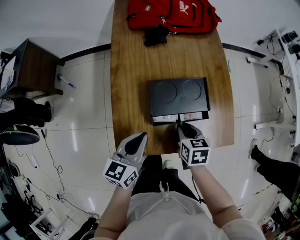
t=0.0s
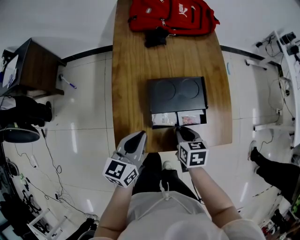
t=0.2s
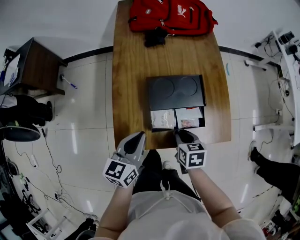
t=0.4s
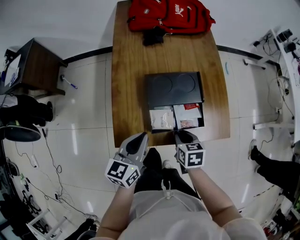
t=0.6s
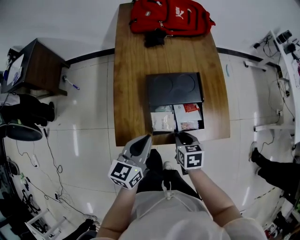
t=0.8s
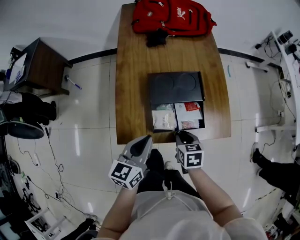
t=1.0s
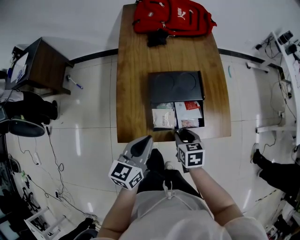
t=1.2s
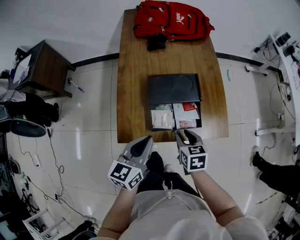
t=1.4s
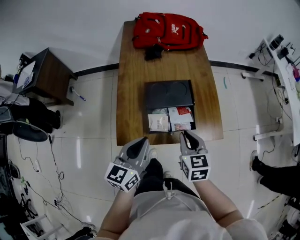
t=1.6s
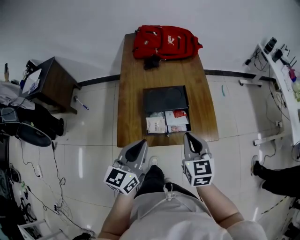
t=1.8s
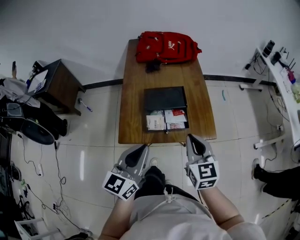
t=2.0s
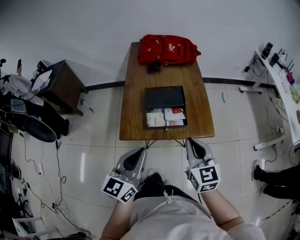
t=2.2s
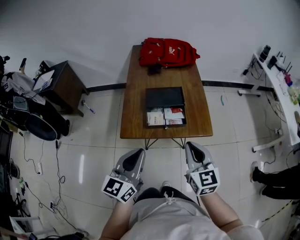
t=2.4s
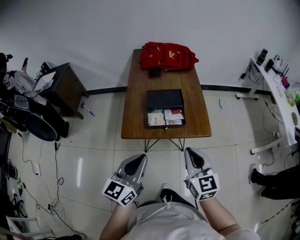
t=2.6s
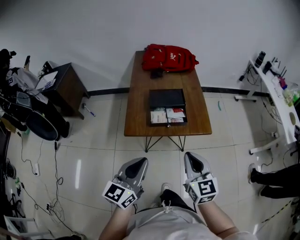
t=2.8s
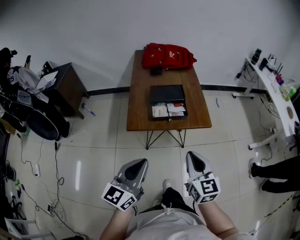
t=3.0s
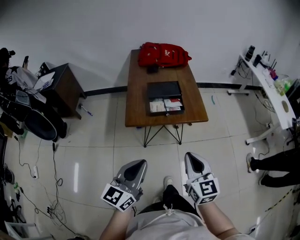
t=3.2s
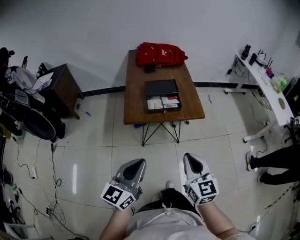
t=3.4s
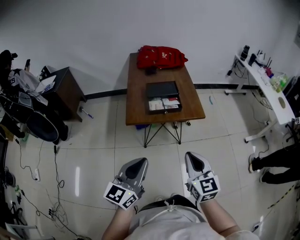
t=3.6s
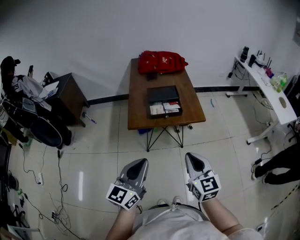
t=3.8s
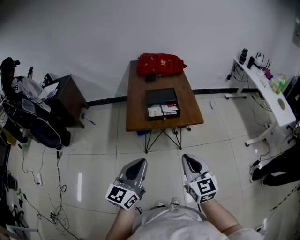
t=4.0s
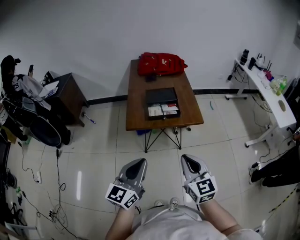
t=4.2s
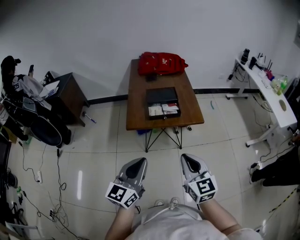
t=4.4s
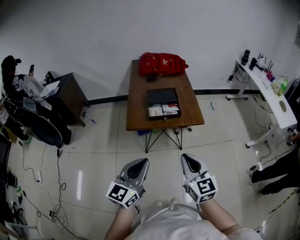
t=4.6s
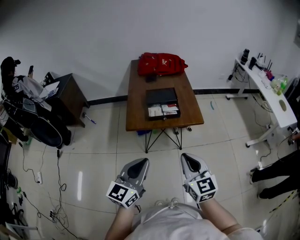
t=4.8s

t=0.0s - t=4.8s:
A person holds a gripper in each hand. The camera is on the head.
t=0.0s - t=1.6s: Both grippers move upward and backward, about 15 cm. The right gripper rotates about 20 degrees.
t=1.6s - t=3.2s: The right gripper moves backward and upward, some 35 cm, and swivels approximately 20 degrees. The left gripper moves backward, approximately 35 cm.
t=3.2s - t=4.8s: The grippers make only small movements.

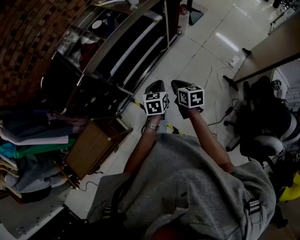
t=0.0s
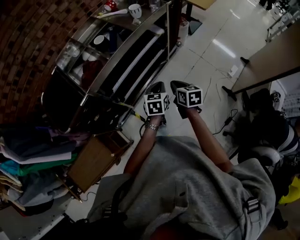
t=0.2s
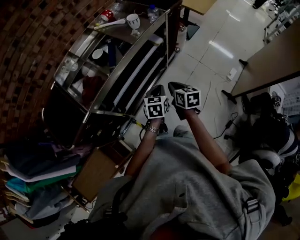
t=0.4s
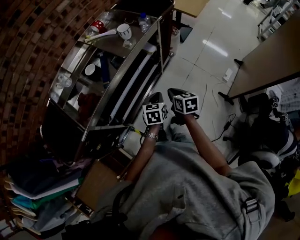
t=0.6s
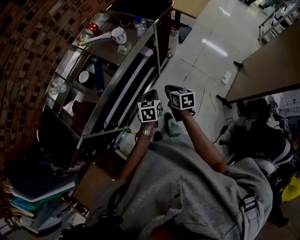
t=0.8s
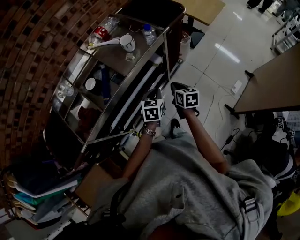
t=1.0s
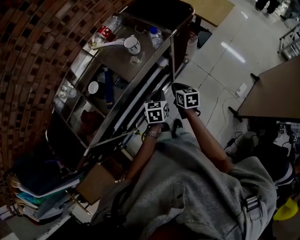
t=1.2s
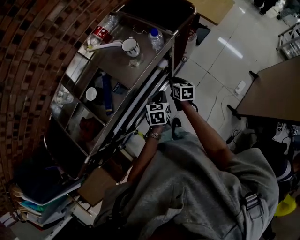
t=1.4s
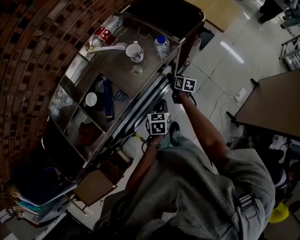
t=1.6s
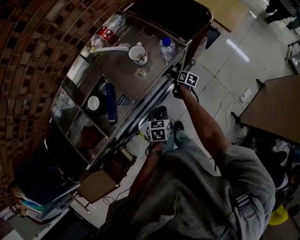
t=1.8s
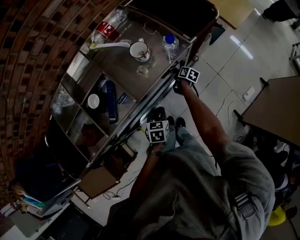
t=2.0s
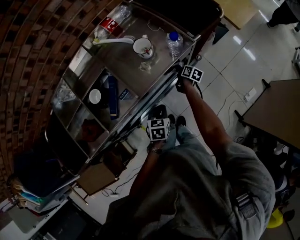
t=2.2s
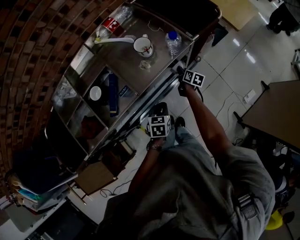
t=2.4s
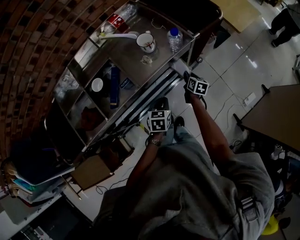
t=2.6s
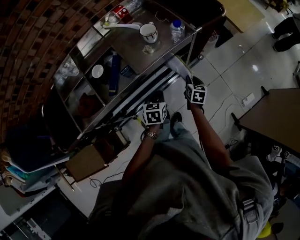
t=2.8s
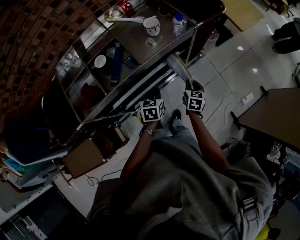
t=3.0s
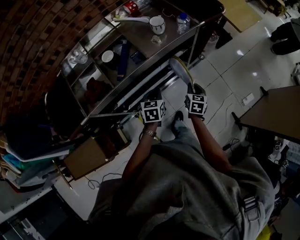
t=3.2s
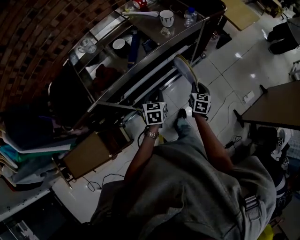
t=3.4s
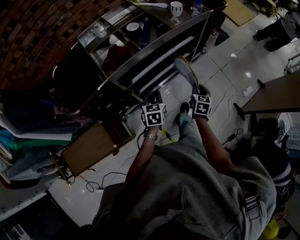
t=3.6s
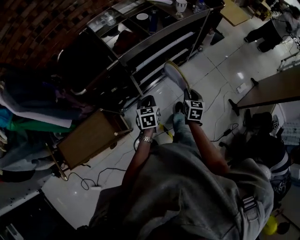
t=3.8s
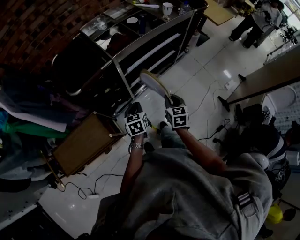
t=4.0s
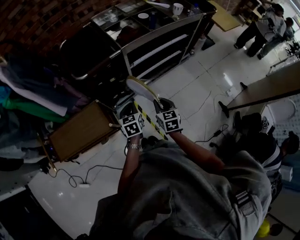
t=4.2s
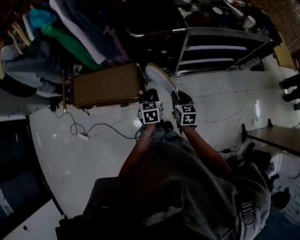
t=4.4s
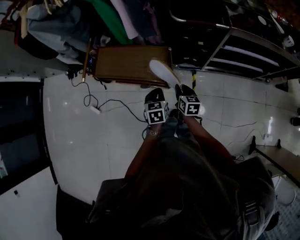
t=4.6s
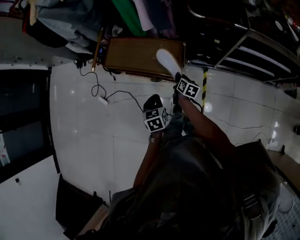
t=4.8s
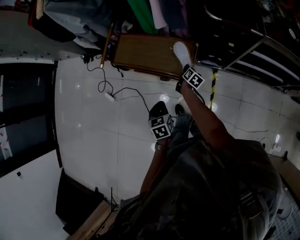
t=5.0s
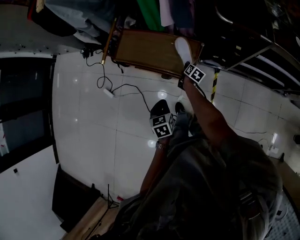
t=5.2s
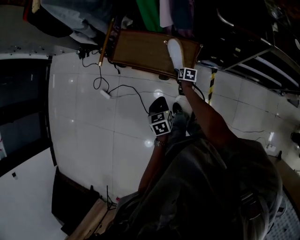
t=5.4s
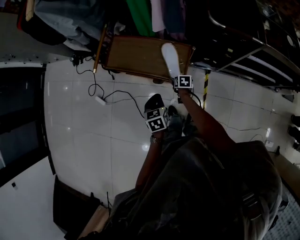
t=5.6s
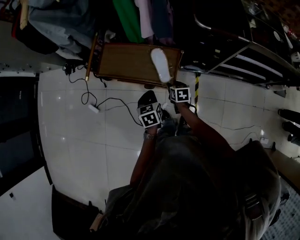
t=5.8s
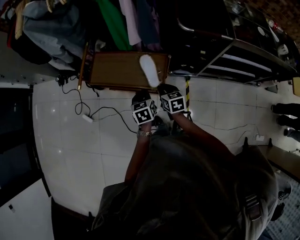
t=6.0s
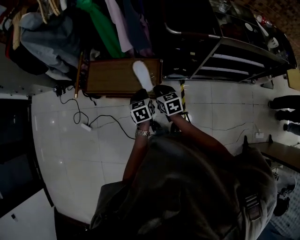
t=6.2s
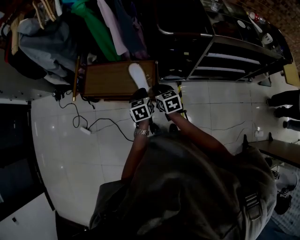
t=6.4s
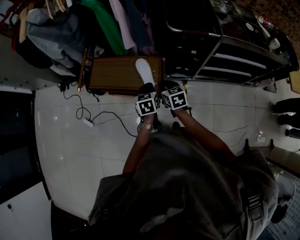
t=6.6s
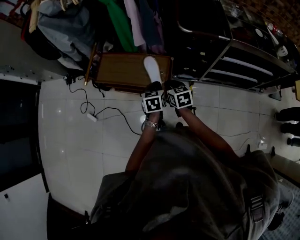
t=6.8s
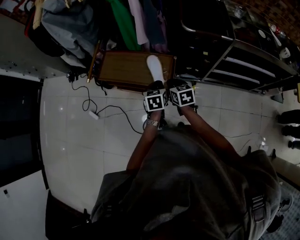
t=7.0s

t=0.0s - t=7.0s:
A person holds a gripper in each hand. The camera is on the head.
t=0.0s - t=1.4s: The two grippers go about 40 cm forward.
t=1.4s - t=2.8s: The right gripper travels downward and back again, some 15 cm each way, and opens and closes again. Meanwhile the left gripper travels to the left by roughly 5 cm.
t=2.8s - t=4.2s: The two grippers travel together, backward and to the left, approximately 60 cm. The right gripper swivels approximately 30 degrees. Meanwhile the left gripper turns by approximately 20 degrees.
t=4.2s - t=5.6s: Both grippers are carried some 40 cm. The right gripper rotates about 50 degrees, and opens, while the left gripper turns by approximately 40 degrees.
t=5.6s - t=7.0s: The left gripper travels to the right and upward by approximately 15 cm. The right gripper heads upward, covering about 25 cm, turns by approximately 30 degrees, and closes up.

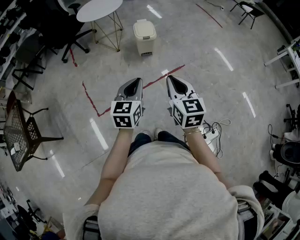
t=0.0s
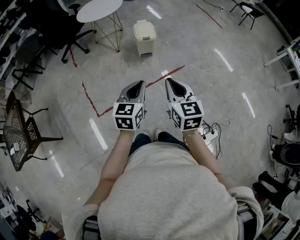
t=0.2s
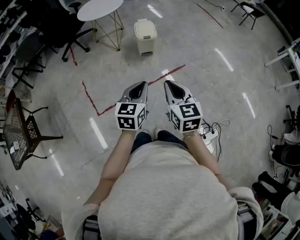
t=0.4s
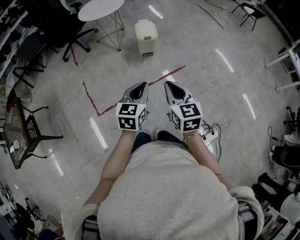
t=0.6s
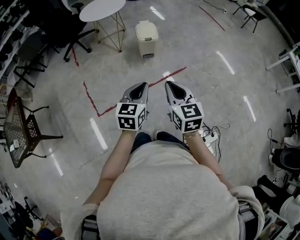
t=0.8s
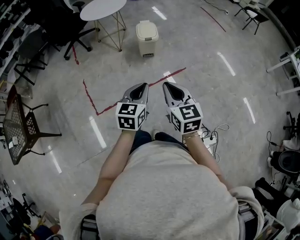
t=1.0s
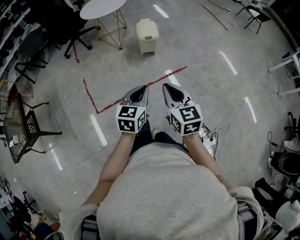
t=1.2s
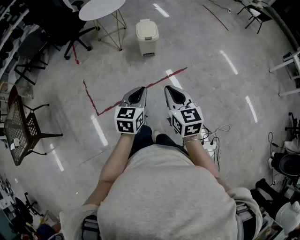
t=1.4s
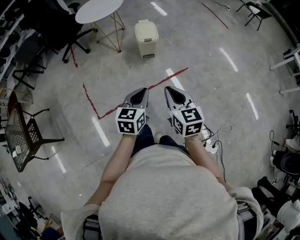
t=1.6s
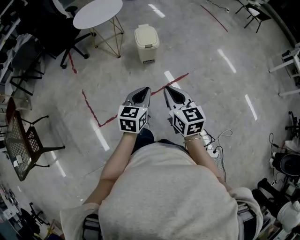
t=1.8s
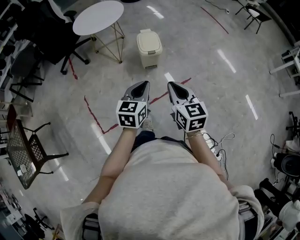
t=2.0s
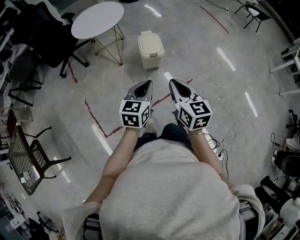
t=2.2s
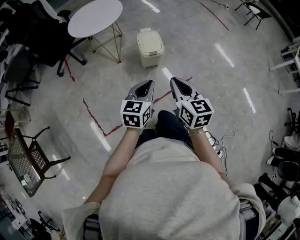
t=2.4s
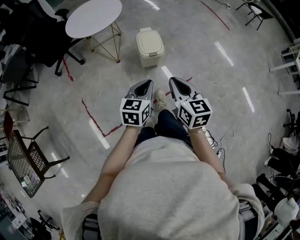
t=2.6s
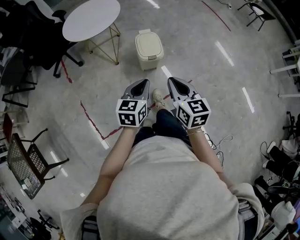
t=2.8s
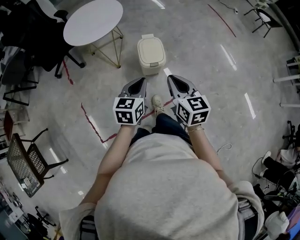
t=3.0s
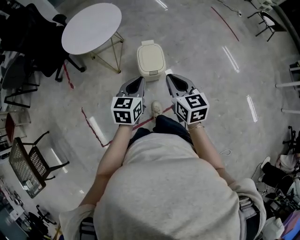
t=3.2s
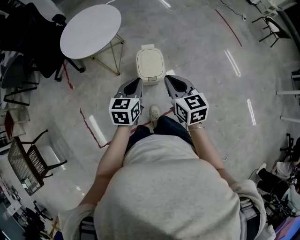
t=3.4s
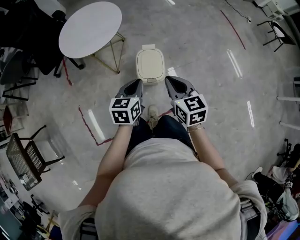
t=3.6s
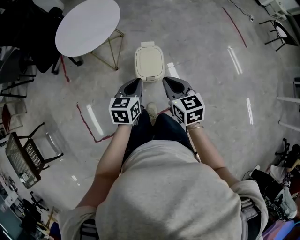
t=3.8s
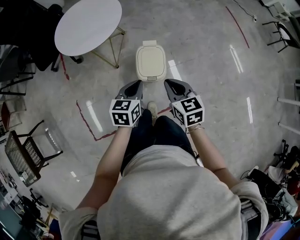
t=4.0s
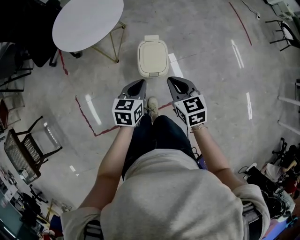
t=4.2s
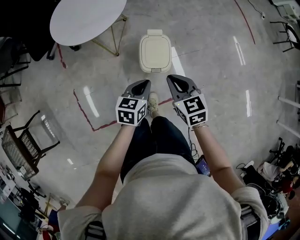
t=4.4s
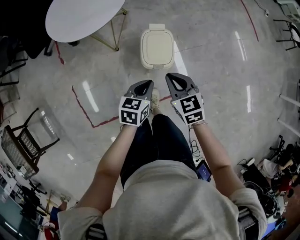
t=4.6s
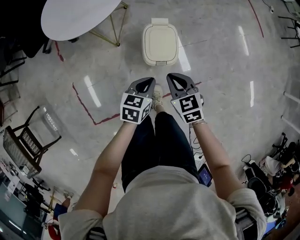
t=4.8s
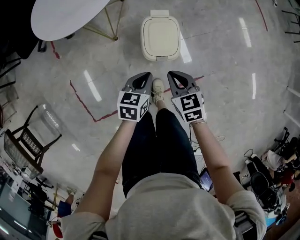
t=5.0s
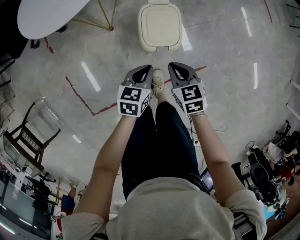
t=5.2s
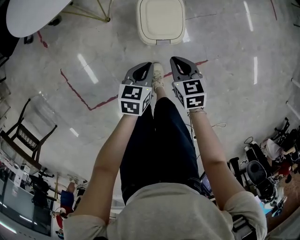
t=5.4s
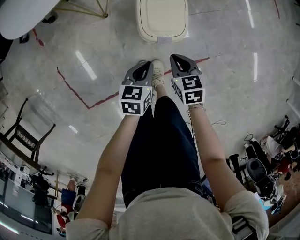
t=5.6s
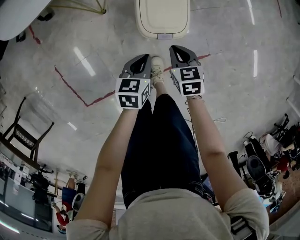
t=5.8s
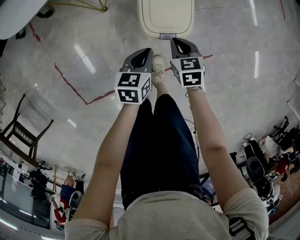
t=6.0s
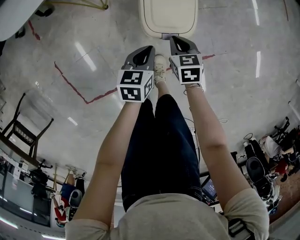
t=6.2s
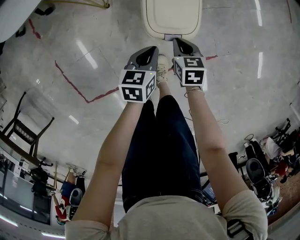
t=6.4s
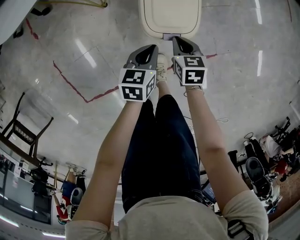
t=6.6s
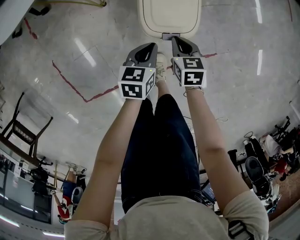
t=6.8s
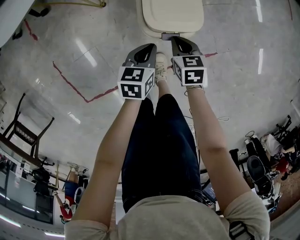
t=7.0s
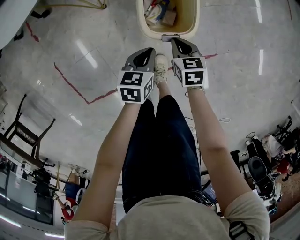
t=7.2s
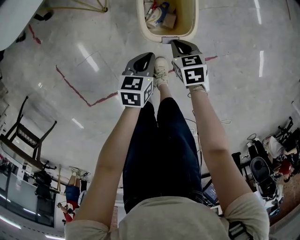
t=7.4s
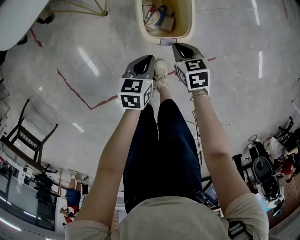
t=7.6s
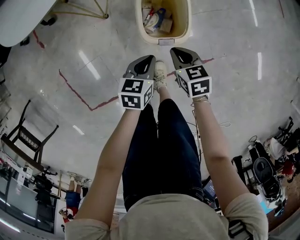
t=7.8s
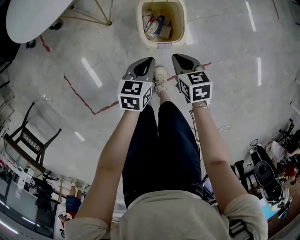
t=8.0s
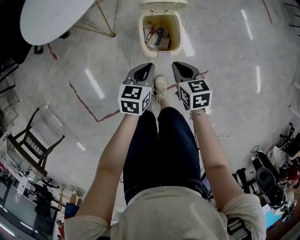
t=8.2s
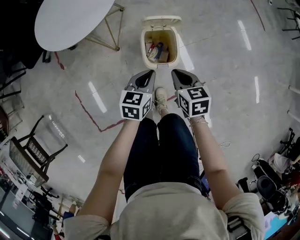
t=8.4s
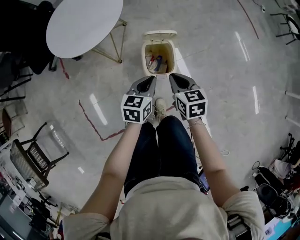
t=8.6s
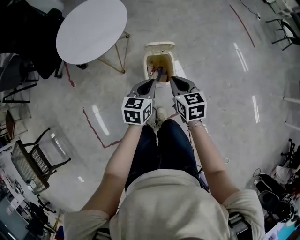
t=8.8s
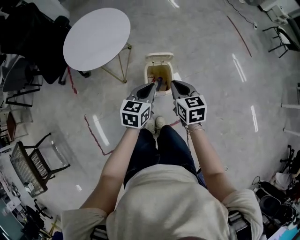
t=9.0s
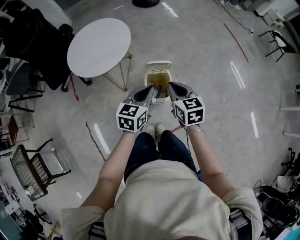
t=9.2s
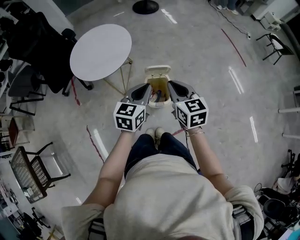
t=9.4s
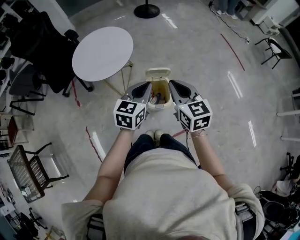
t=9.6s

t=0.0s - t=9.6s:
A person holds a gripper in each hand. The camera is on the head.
t=0.0s - t=1.6s: The left gripper moves downward, roughly 5 cm. The right gripper shifts by approximately 5 cm.
t=1.6s - t=3.2s: The two grippers travel together, forward, approximately 40 cm.
t=3.2s - t=4.8s: Both grippers travel together downward and forward, some 20 cm. The left gripper turns by roughly 20 degrees. The right gripper changes its angle by some 30 degrees.
t=4.8s - t=6.4s: The grippers both shift downward by approximately 25 cm. The right gripper swivels some 30 degrees.
t=6.4s - t=8.0s: The two grippers go about 10 cm upward.
t=8.0s - t=9.6s: The grippers both shift upward by approximately 40 cm. The left gripper rotates approximately 30 degrees; the right gripper tilts its fingers about 30 degrees upward.

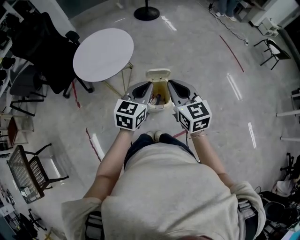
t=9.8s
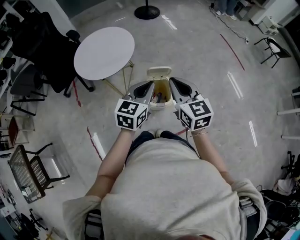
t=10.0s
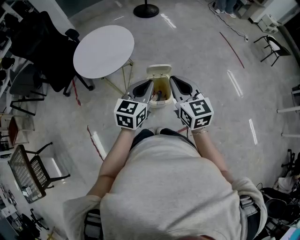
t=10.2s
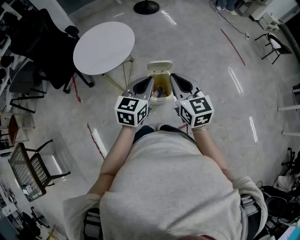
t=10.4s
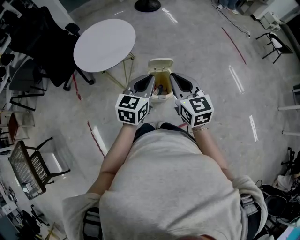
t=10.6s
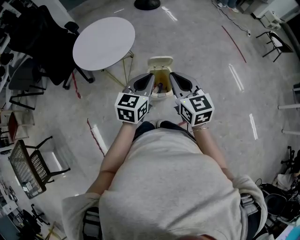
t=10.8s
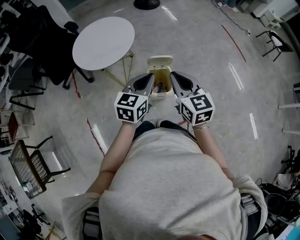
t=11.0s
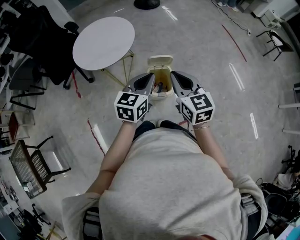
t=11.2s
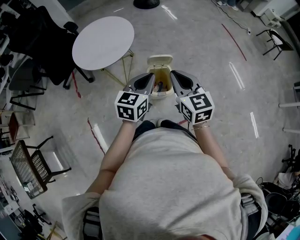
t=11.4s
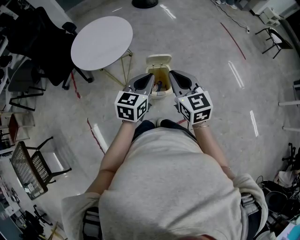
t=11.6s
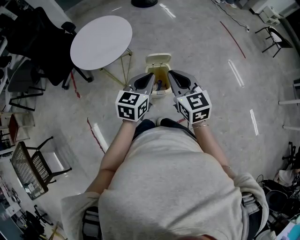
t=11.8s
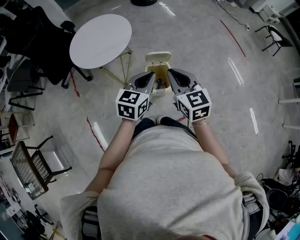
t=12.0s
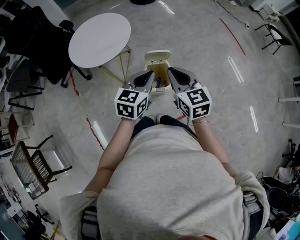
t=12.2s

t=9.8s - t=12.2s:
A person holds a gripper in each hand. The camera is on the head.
t=9.8s - t=12.2s: The grippers move only a little.
